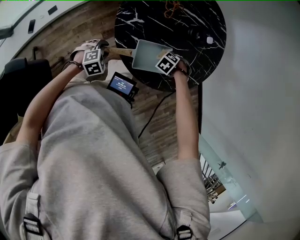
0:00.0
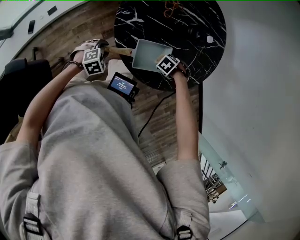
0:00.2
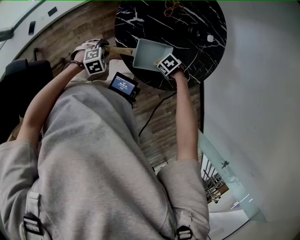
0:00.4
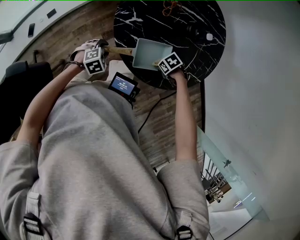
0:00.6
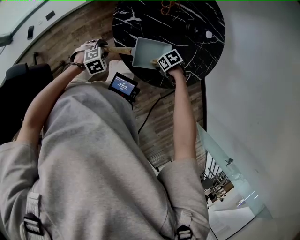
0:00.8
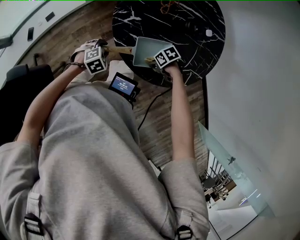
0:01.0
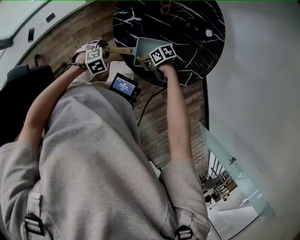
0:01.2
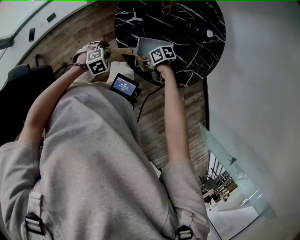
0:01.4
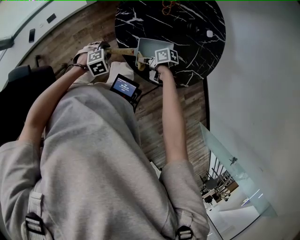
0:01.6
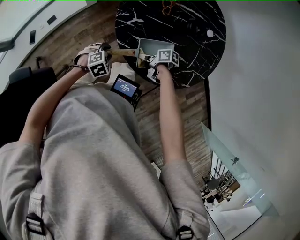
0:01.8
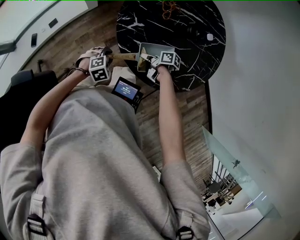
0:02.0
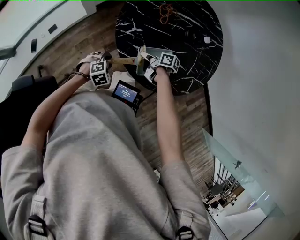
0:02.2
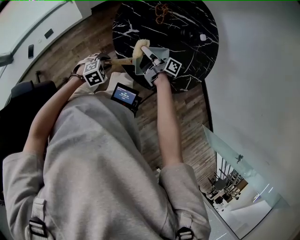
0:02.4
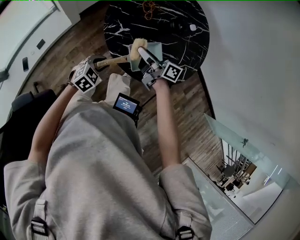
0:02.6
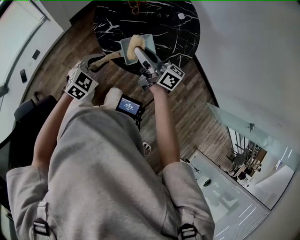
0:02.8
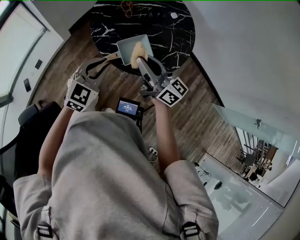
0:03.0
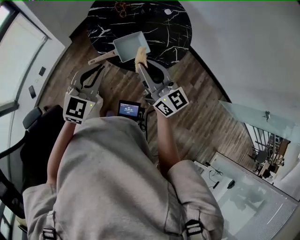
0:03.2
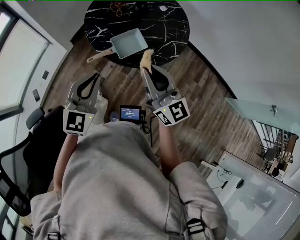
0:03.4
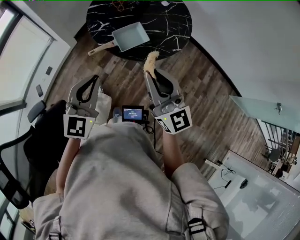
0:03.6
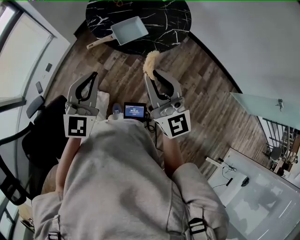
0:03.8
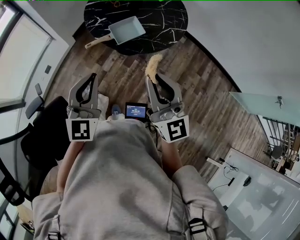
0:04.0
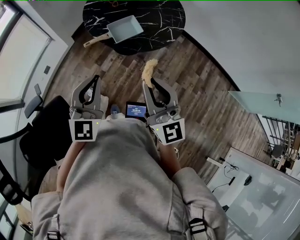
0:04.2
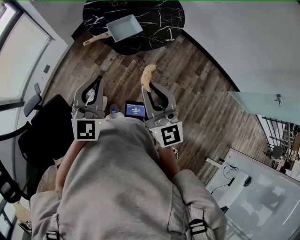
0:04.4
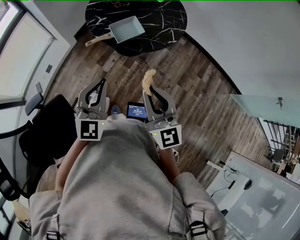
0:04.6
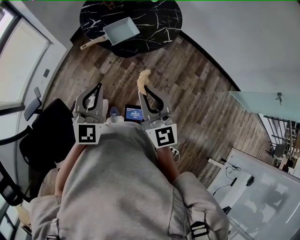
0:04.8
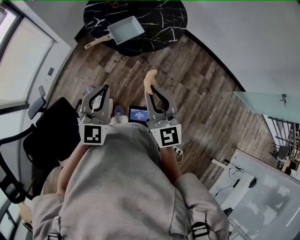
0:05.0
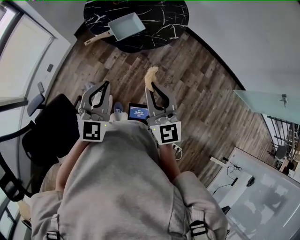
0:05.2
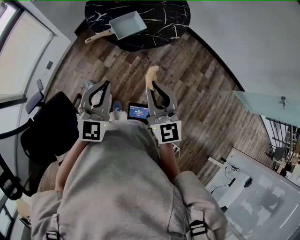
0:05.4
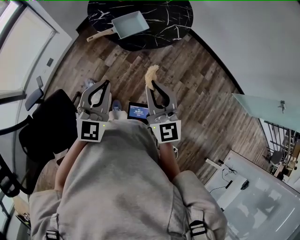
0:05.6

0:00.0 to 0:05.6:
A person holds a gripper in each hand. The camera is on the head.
0:00.0 to 0:01.4: The right gripper moves some 15 cm, and turns by some 70 degrees.
0:01.4 to 0:02.8: The left gripper shifts approximately 20 cm upward, and tilts its fingers some 30 degrees upward; the right gripper shifts some 30 cm upward, and tilts its fingers some 50 degrees upward.
0:02.8 to 0:04.2: The left gripper travels backward and upward by approximately 35 cm, turns by some 30 degrees, and closes up, while the right gripper heads backward, covering some 35 cm, and rolls counterclockwise, seen from behind, by about 60 degrees.
0:04.2 to 0:05.6: The left gripper changes place by roughly 5 cm. The right gripper moves downward, approximately 5 cm.

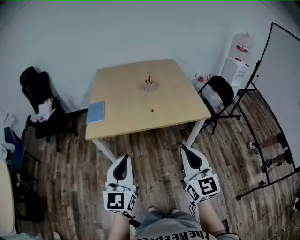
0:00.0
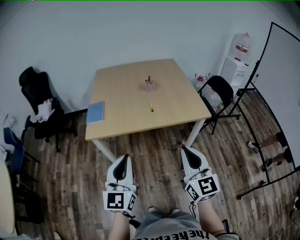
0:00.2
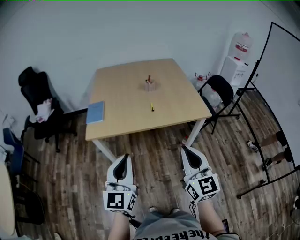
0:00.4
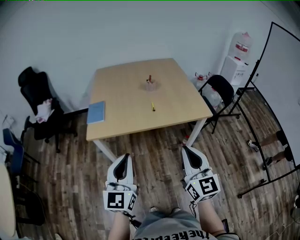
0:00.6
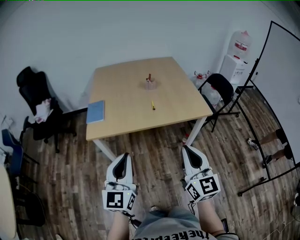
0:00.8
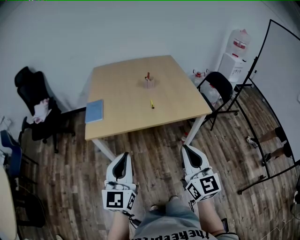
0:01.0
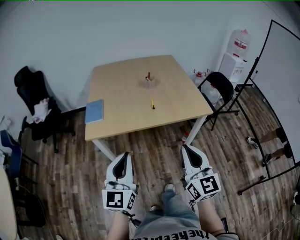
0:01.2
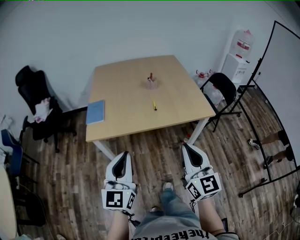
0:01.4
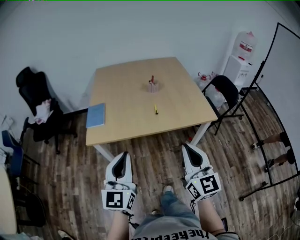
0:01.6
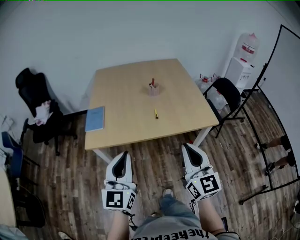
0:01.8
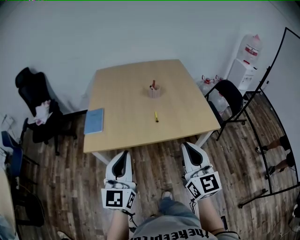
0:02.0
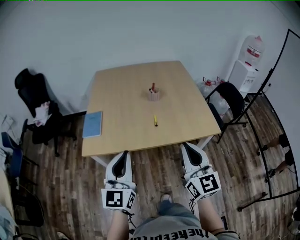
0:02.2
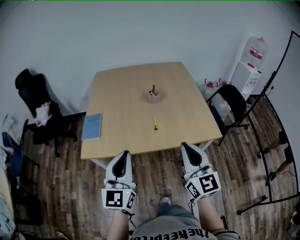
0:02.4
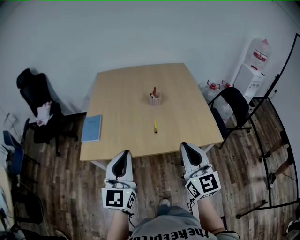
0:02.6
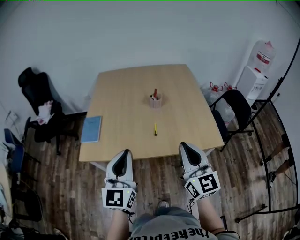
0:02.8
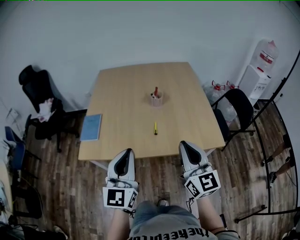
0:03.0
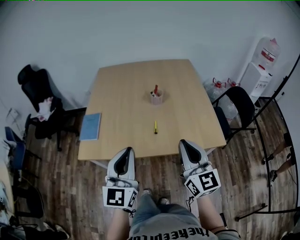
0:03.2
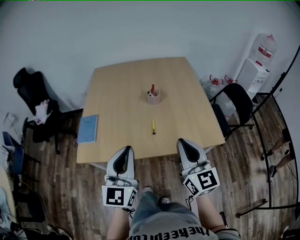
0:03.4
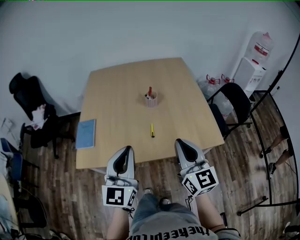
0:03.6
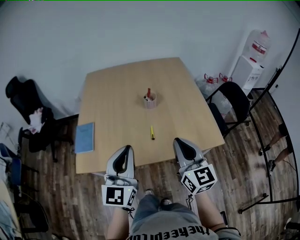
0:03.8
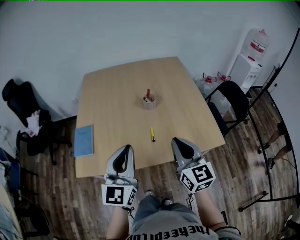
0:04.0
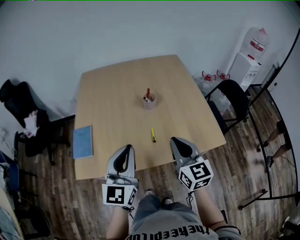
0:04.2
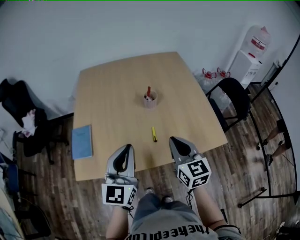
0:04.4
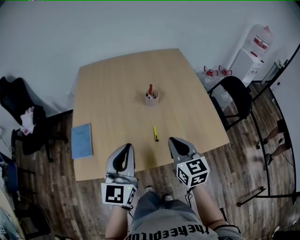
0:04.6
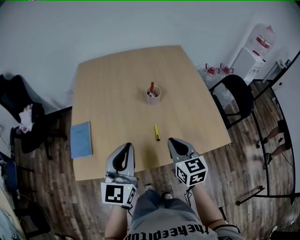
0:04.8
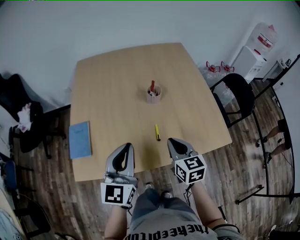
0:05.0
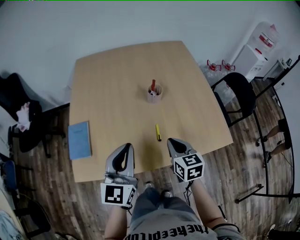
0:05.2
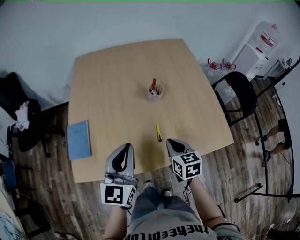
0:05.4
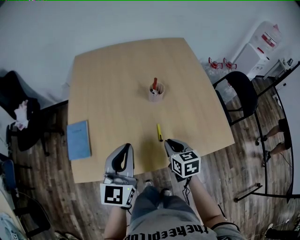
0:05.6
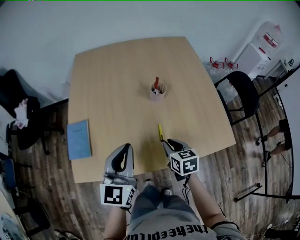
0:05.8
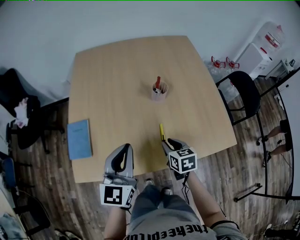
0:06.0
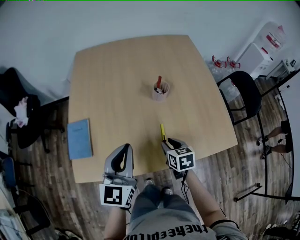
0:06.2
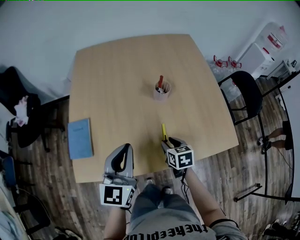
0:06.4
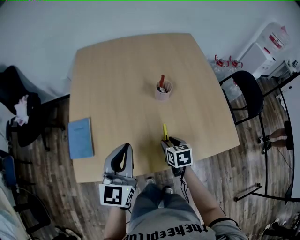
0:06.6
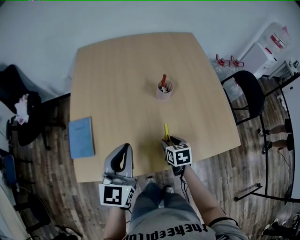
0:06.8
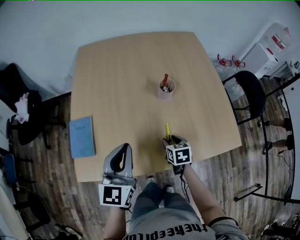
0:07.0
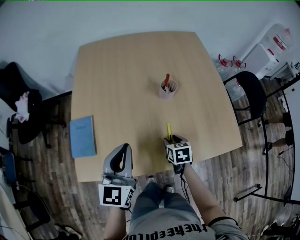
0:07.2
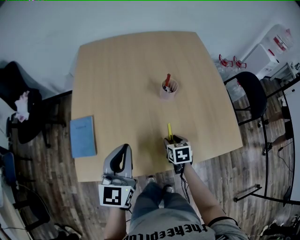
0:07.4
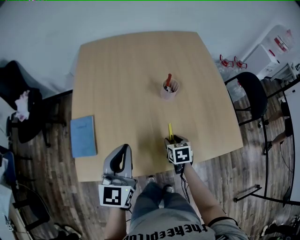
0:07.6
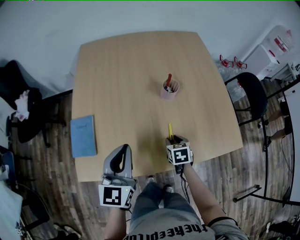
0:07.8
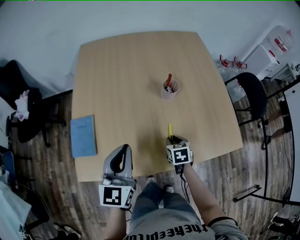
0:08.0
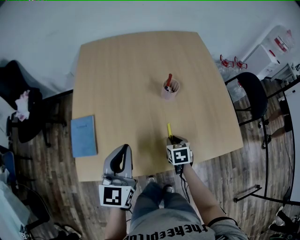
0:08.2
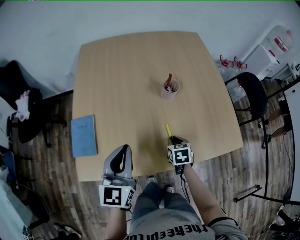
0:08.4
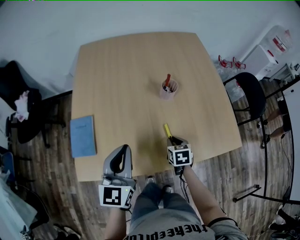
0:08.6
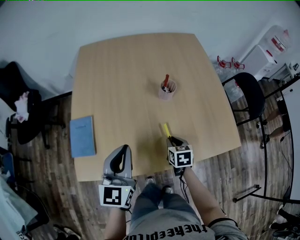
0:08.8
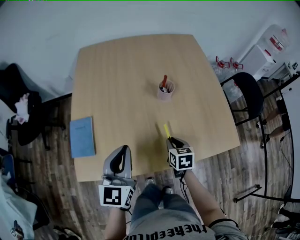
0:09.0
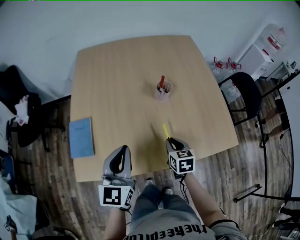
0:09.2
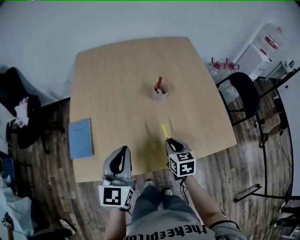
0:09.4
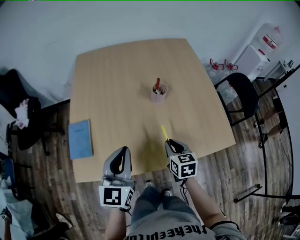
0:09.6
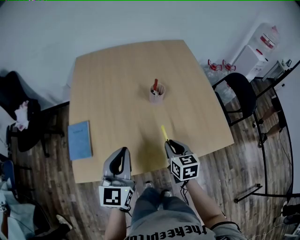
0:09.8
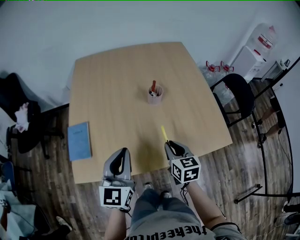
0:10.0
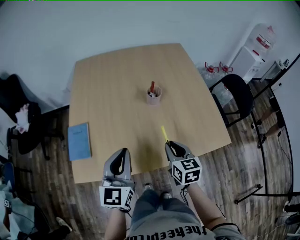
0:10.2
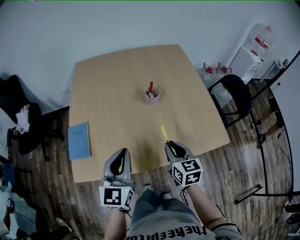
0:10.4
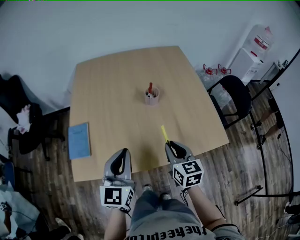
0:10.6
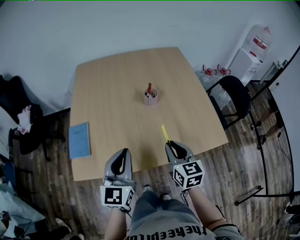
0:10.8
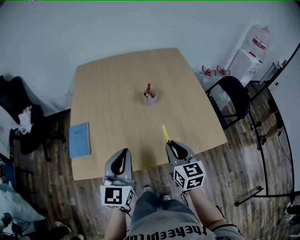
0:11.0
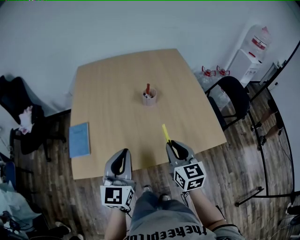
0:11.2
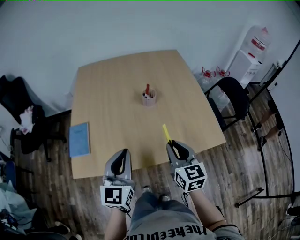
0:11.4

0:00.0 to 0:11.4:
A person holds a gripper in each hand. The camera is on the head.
0:00.0 to 0:01.4: There are only small adjustments of the grippers.
0:01.4 to 0:02.8: Both grippers travel together forward, about 20 cm.
0:02.8 to 0:04.2: The right gripper shifts approximately 15 cm forward and downward, while the left gripper travels forward by some 10 cm.
0:04.2 to 0:05.6: The right gripper goes approximately 20 cm downward and forward, and rotates approximately 30 degrees. The left gripper heads forward and downward, covering roughly 10 cm.
0:05.6 to 0:07.2: The left gripper changes place by approximately 5 cm, while the right gripper is displaced downward by some 10 cm, and opens its fingers.
0:07.2 to 0:08.6: The right gripper closes up.
0:08.6 to 0:10.0: The right gripper moves upward, some 10 cm, and rotates about 20 degrees.
0:10.0 to 0:11.4: The right gripper is displaced upward and backward by some 10 cm. Meanwhile the left gripper shifts by some 5 cm.

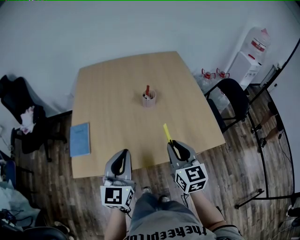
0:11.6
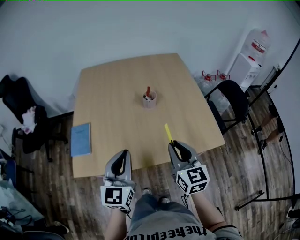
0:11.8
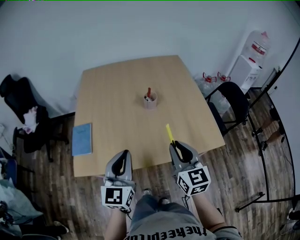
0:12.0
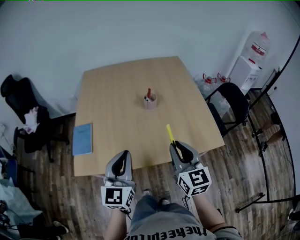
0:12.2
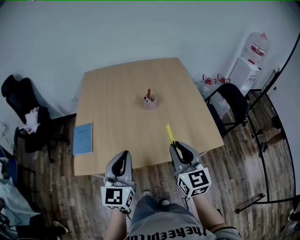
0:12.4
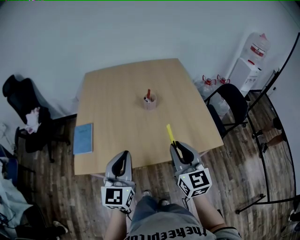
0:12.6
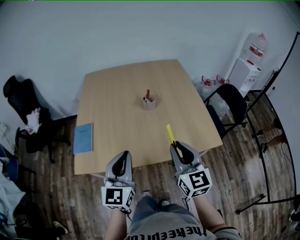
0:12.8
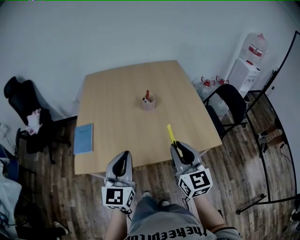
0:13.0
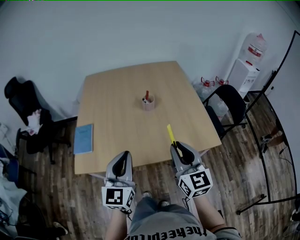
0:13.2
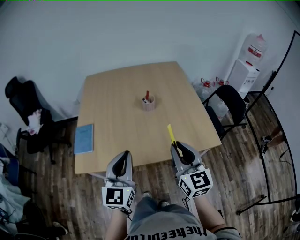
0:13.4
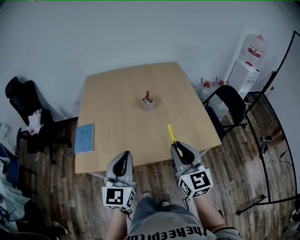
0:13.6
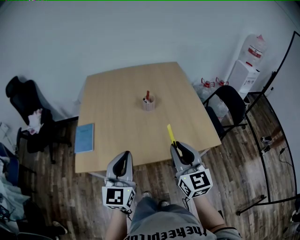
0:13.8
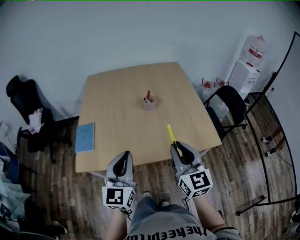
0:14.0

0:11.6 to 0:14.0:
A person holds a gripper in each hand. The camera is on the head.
0:11.6 to 0:12.8: The right gripper is displaced upward by about 5 cm.
0:12.8 to 0:14.0: The grippers make only small movements.

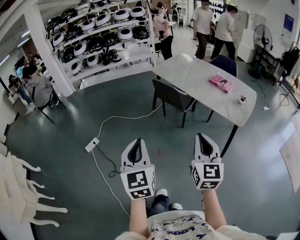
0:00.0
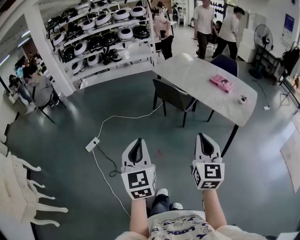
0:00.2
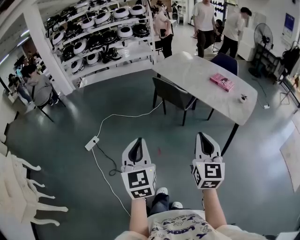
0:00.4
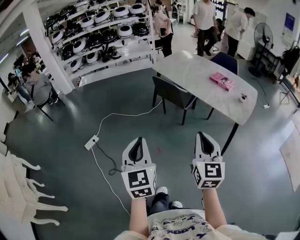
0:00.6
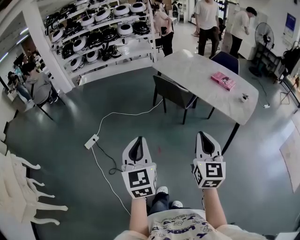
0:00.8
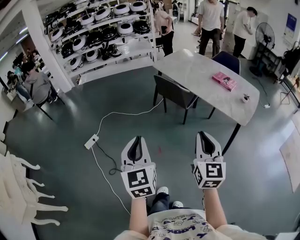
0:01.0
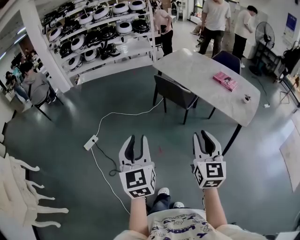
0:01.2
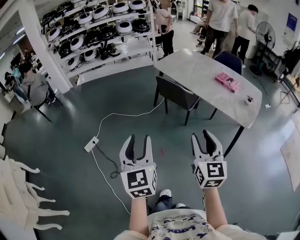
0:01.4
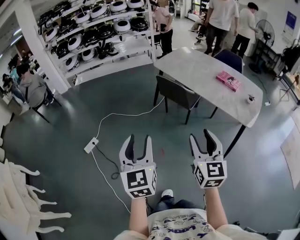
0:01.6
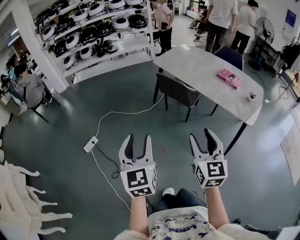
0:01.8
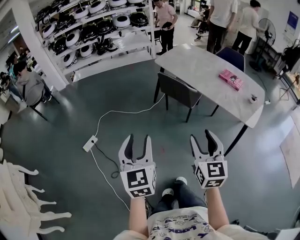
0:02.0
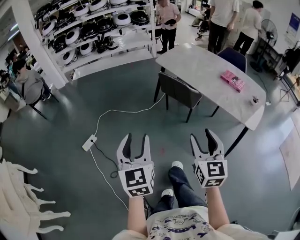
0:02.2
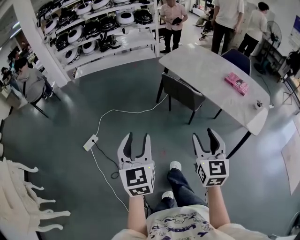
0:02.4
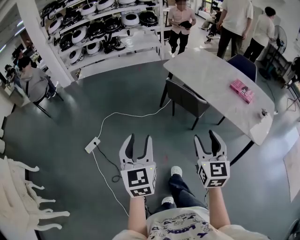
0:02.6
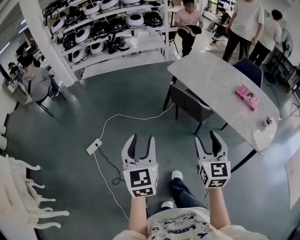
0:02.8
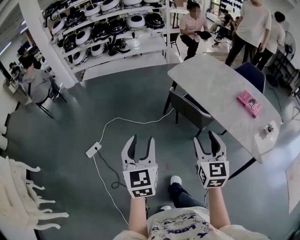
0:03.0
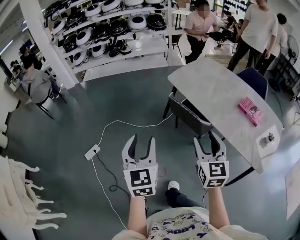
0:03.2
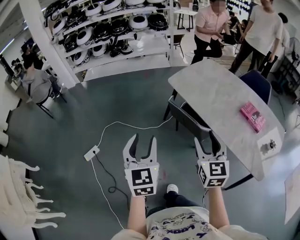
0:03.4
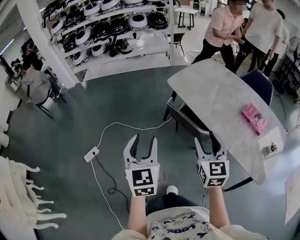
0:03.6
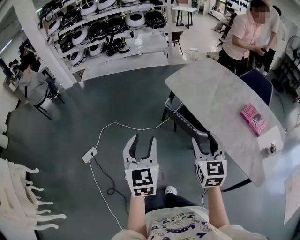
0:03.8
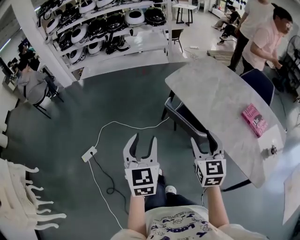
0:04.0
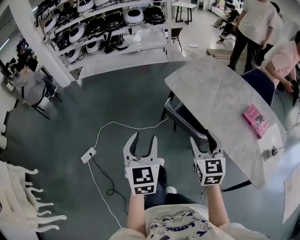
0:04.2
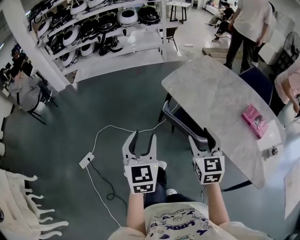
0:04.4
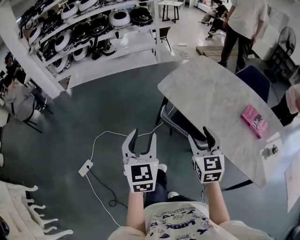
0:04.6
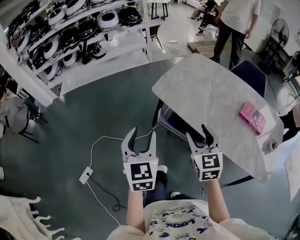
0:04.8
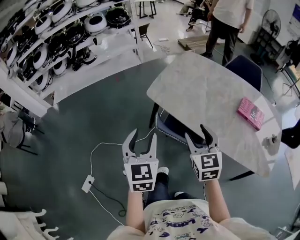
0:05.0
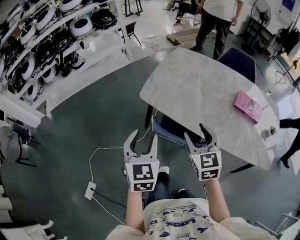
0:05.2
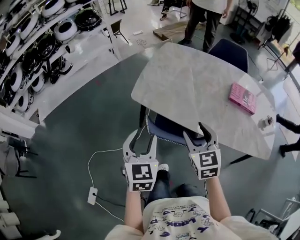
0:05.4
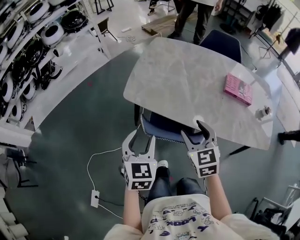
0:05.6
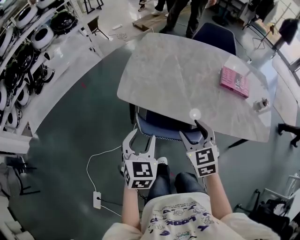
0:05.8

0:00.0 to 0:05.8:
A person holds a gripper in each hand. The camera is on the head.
0:00.0 to 0:01.4: The two grippers go approximately 10 cm forward and to the left. The left gripper opens, while the right gripper opens its fingers.
0:01.4 to 0:02.8: The two grippers go some 20 cm forward.
0:02.8 to 0:04.4: Both grippers travel together forward, roughly 30 cm.
0:04.4 to 0:05.8: The left gripper ends up approximately 30 cm from where it was, and rotates some 50 degrees, while the right gripper moves some 20 cm, and turns by some 30 degrees.
